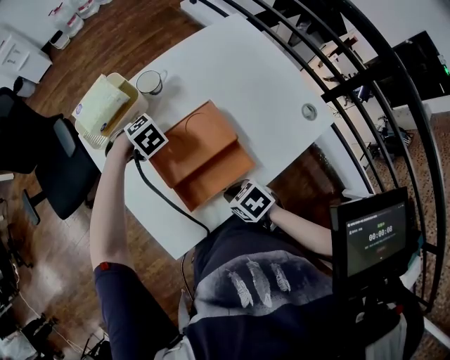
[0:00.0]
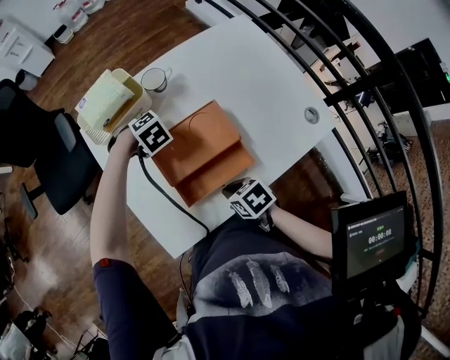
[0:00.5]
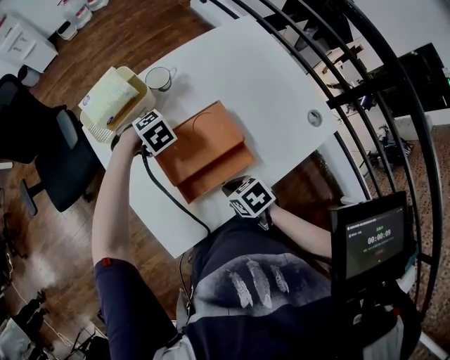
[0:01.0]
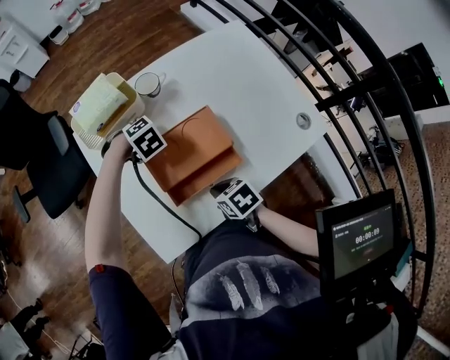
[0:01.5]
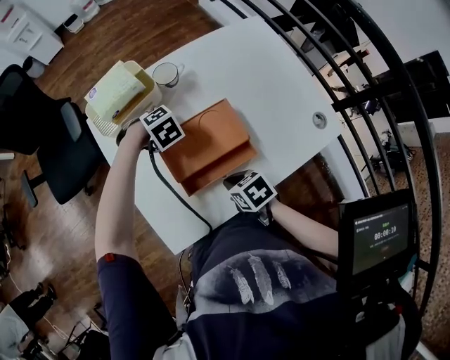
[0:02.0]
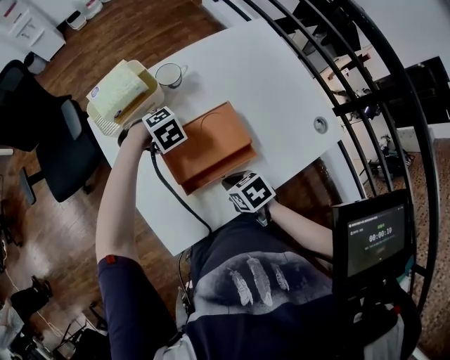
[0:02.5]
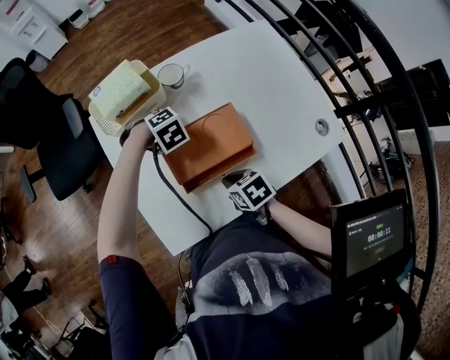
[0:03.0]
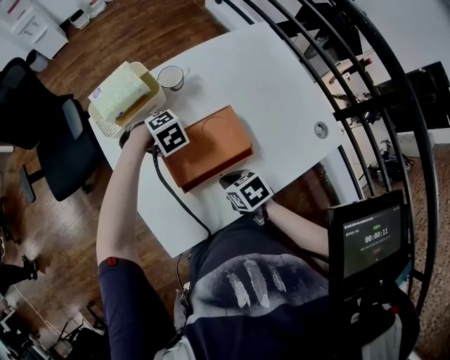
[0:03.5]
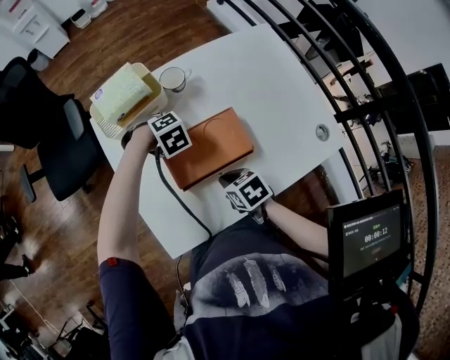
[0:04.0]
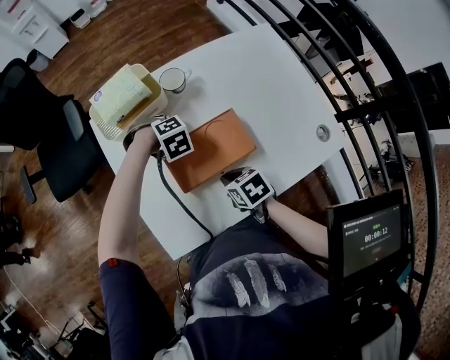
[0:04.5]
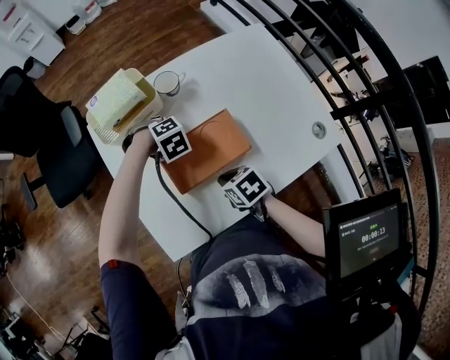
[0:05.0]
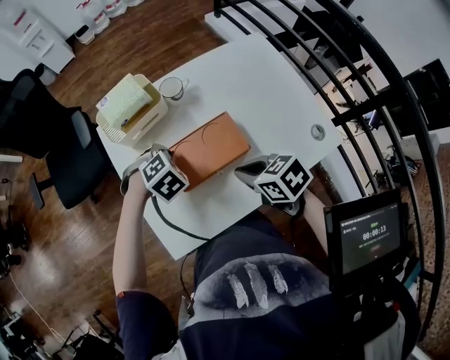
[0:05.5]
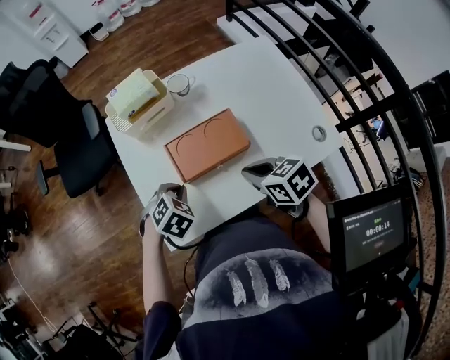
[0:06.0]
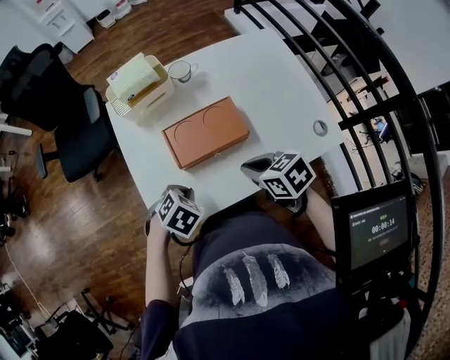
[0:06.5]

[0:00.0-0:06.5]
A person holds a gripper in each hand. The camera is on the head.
0:04.5 to 0:06.5: The right gripper heads upward, covering about 10 cm.

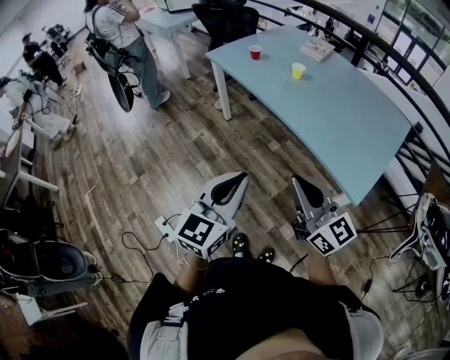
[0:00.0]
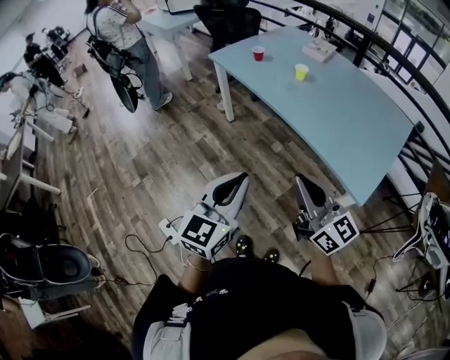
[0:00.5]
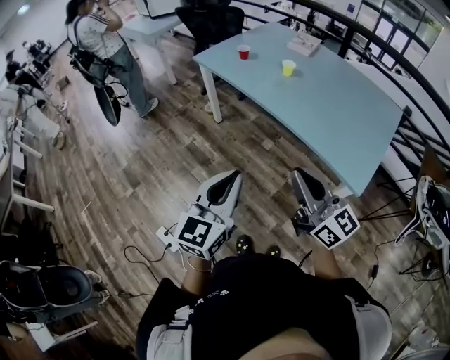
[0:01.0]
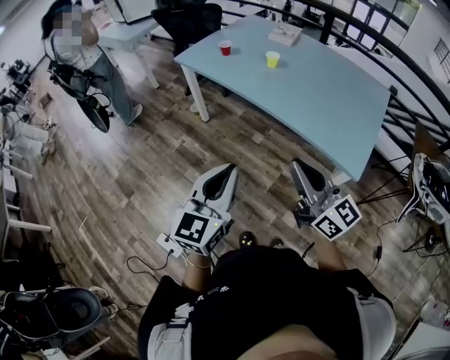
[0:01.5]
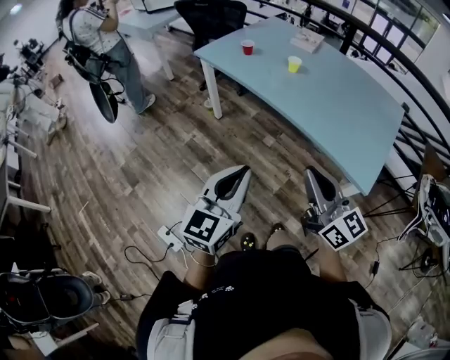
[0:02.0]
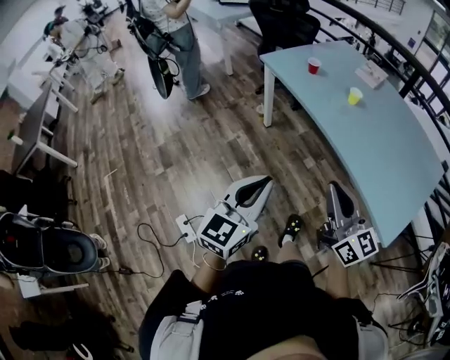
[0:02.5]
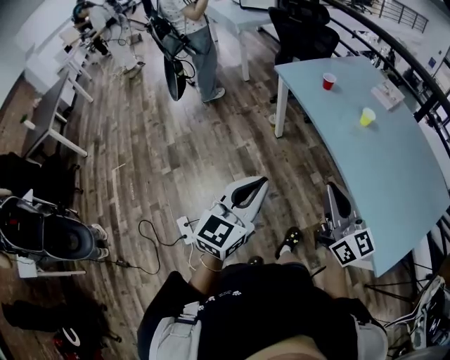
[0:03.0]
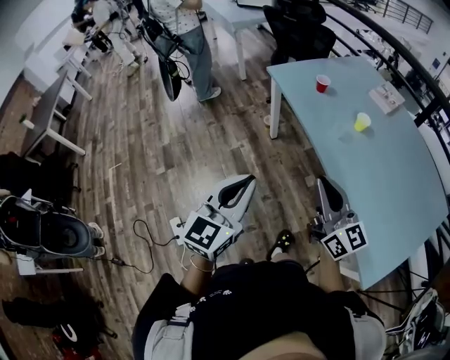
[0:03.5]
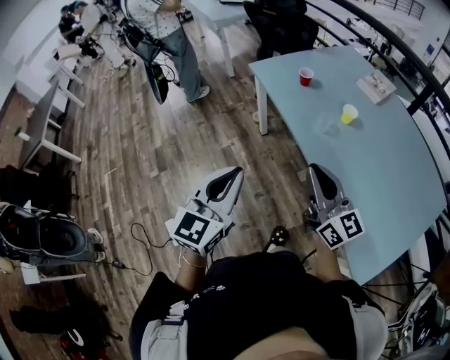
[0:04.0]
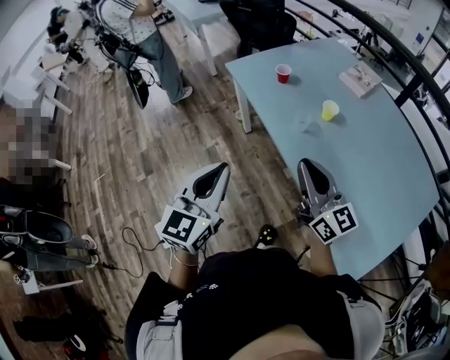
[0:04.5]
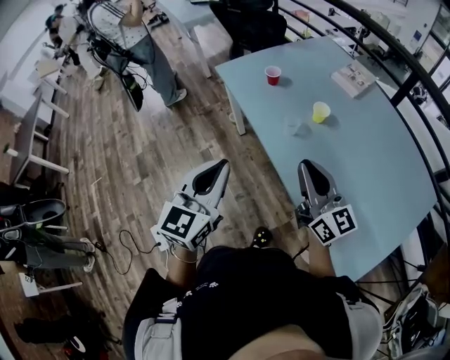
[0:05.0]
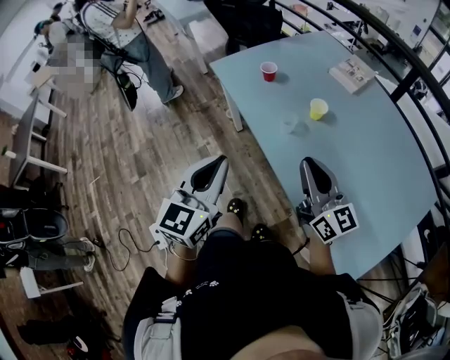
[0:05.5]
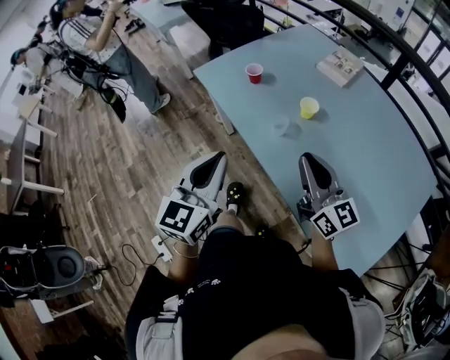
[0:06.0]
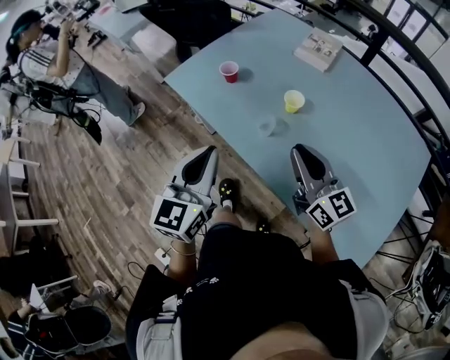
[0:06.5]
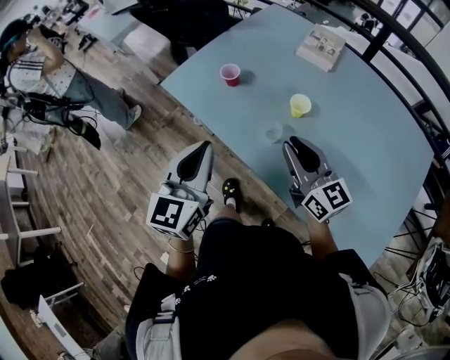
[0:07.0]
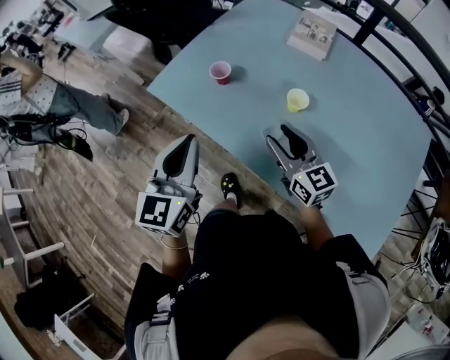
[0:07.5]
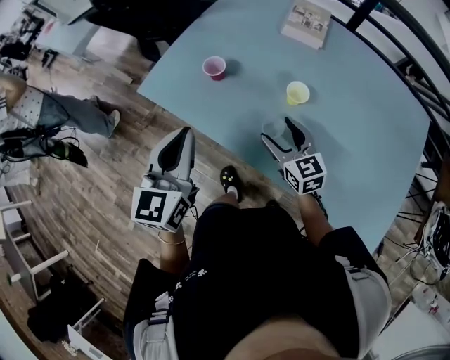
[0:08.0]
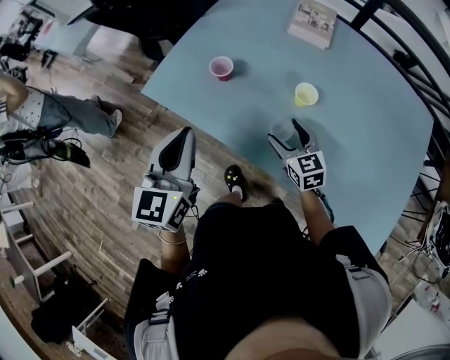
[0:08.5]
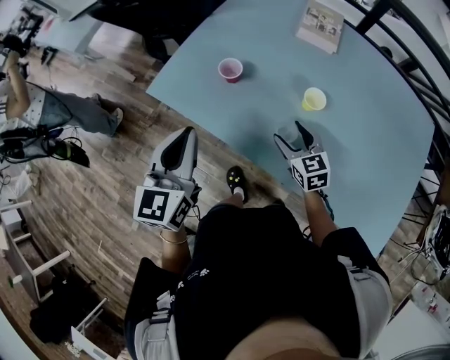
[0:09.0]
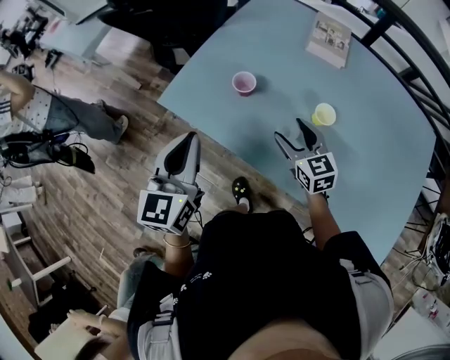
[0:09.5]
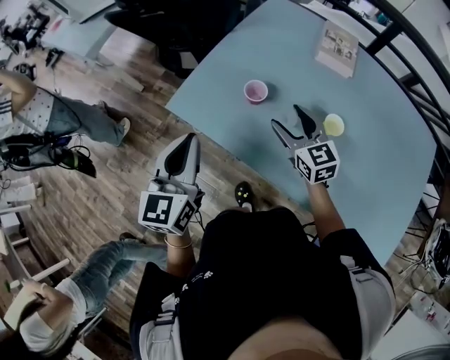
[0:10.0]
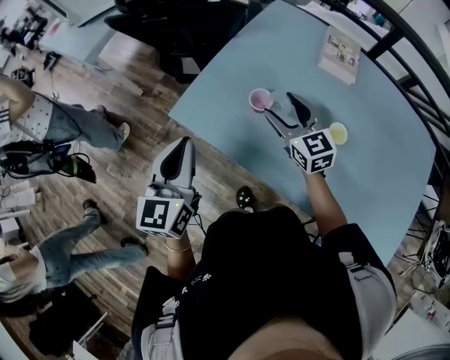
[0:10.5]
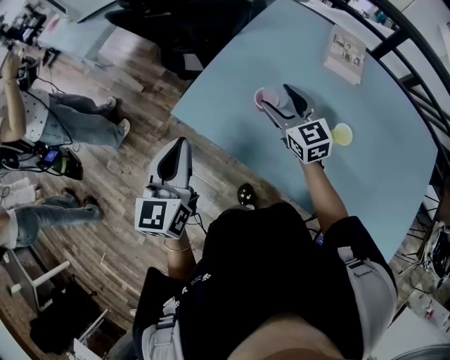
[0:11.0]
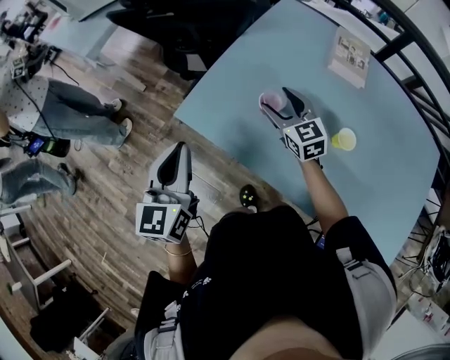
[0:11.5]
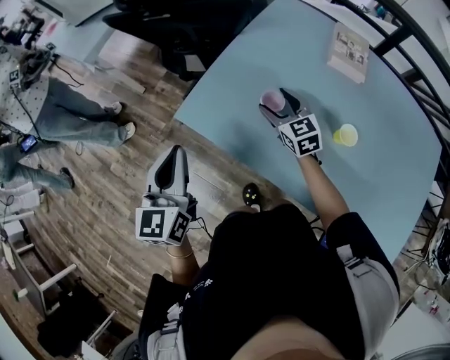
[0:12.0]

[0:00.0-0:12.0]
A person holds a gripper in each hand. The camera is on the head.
0:00.0 to 0:02.0: The left gripper is displaced to the left and forward by roughly 10 cm; the right gripper shifts by some 5 cm.
0:02.0 to 0:04.0: Both grippers move forward, some 25 cm. The left gripper turns by some 20 degrees.
0:04.0 to 0:06.0: The right gripper shifts approximately 20 cm to the right and forward. The left gripper is displaced forward and to the right by some 20 cm.
0:06.0 to 0:08.0: The left gripper is displaced forward by approximately 25 cm, while the right gripper heads forward and downward, covering approximately 25 cm, turns by about 30 degrees, and opens up.
0:08.0 to 0:10.0: The left gripper is displaced to the left and forward by some 15 cm. Meanwhile the right gripper goes roughly 15 cm forward and to the left.
0:10.0 to 0:12.0: The left gripper travels to the left by approximately 10 cm. The right gripper shifts approximately 15 cm forward, to the left and downward.

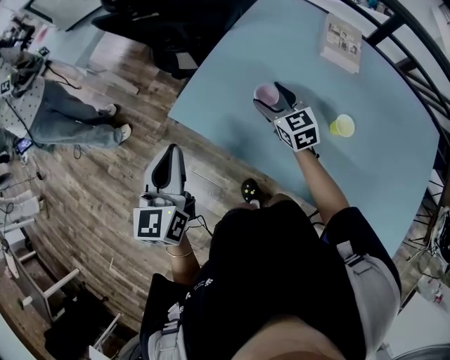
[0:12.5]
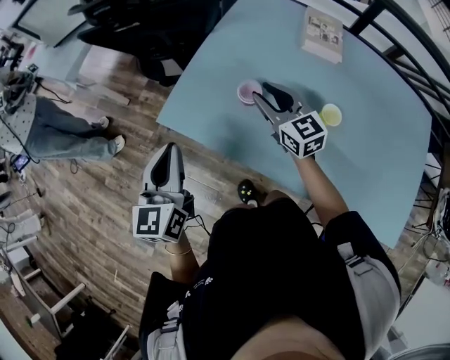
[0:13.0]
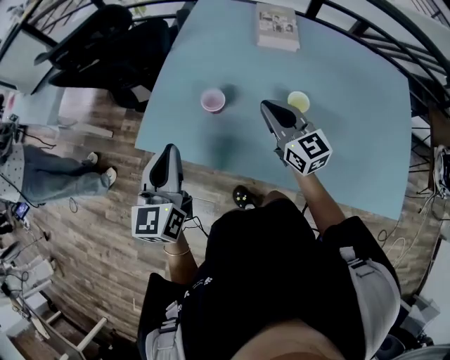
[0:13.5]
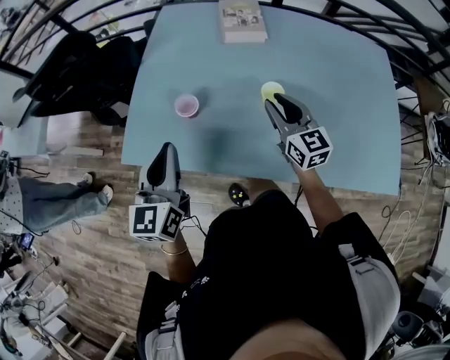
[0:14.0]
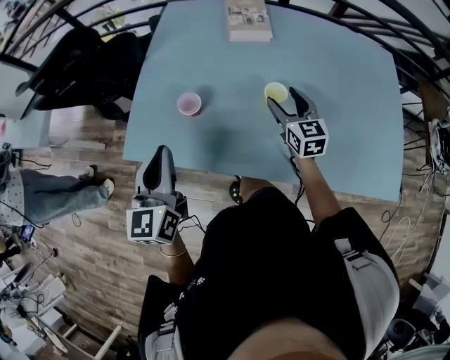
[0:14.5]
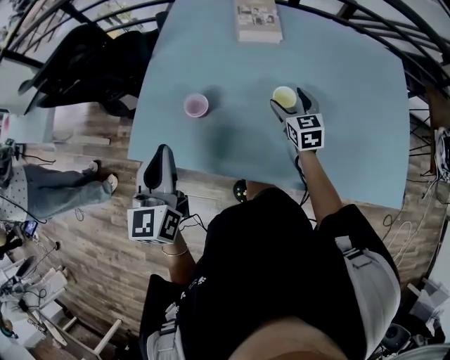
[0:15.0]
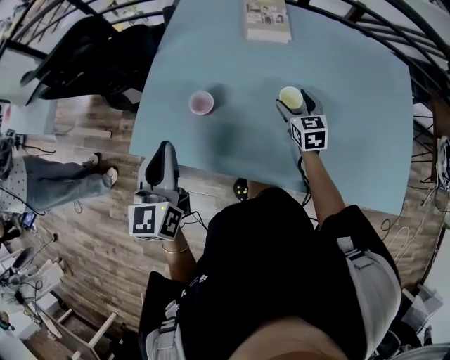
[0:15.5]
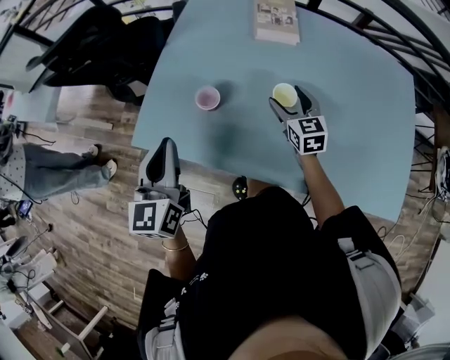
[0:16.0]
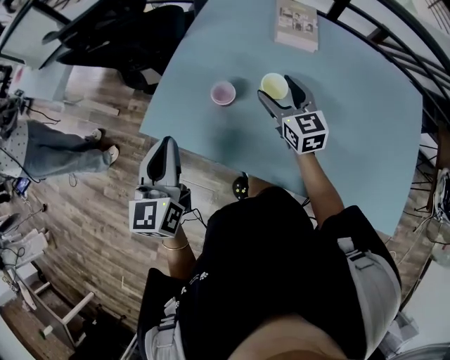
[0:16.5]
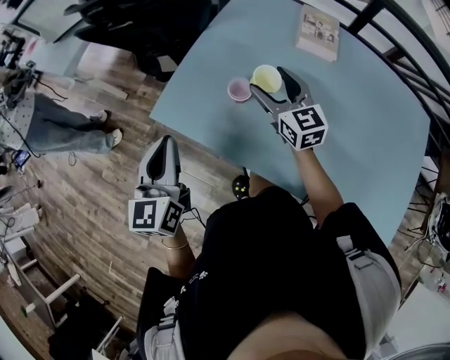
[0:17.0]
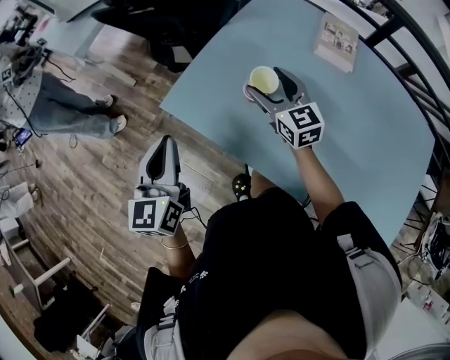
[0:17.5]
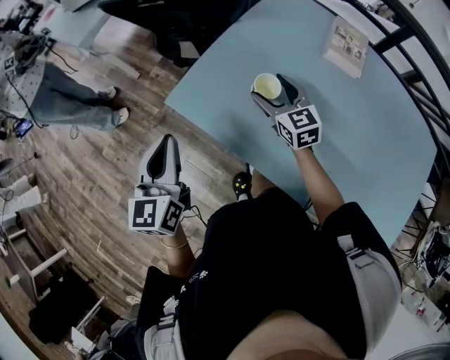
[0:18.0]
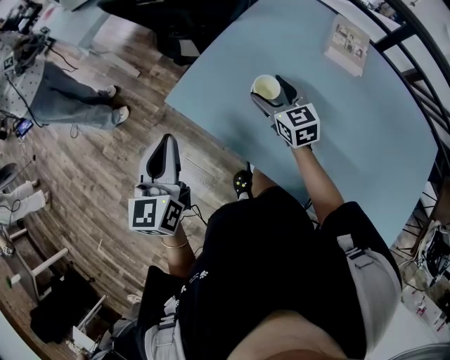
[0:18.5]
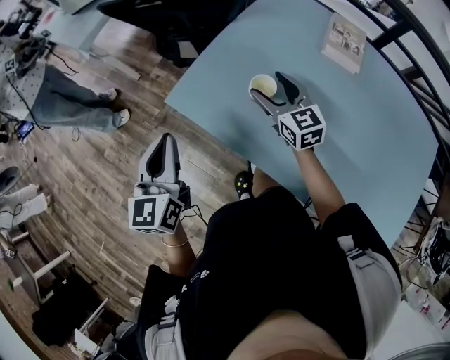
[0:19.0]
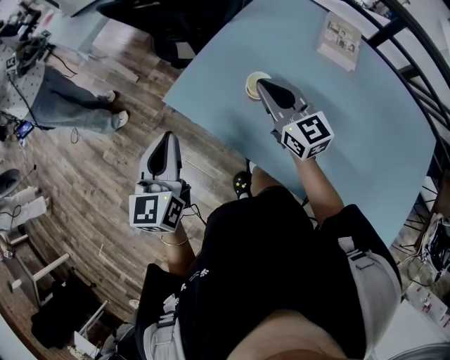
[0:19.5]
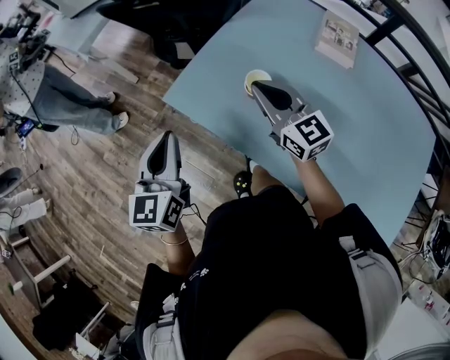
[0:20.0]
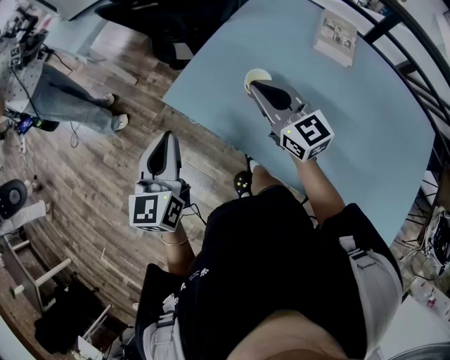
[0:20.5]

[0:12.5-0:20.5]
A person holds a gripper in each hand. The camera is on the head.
0:12.5 to 0:14.5: The left gripper changes place by about 15 cm, and changes its angle by some 20 degrees; the right gripper goes upward and returns, approximately 10 cm each way, swivels some 40 degrees, and closes, then opens again.
0:14.5 to 0:16.5: The left gripper travels to the left by roughly 5 cm. Meanwhile the right gripper shifts roughly 15 cm to the left.
0:16.5 to 0:18.5: The left gripper travels to the left by approximately 10 cm. Meanwhile the right gripper travels to the left and forward by roughly 15 cm, and turns by about 20 degrees.
0:18.5 to 0:20.5: The right gripper goes about 15 cm upward and backward, swivels some 20 degrees, and closes.
